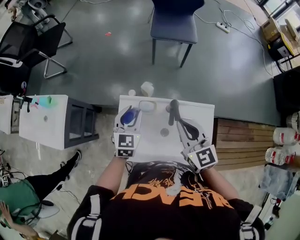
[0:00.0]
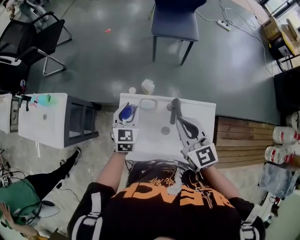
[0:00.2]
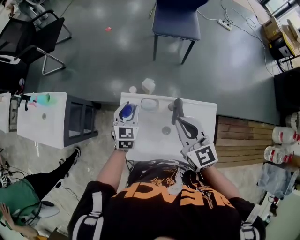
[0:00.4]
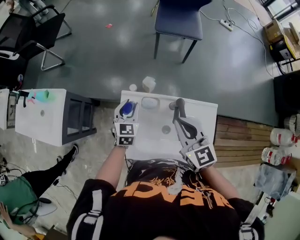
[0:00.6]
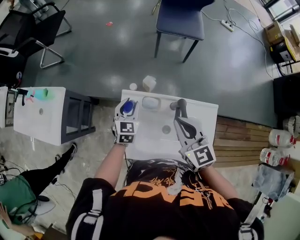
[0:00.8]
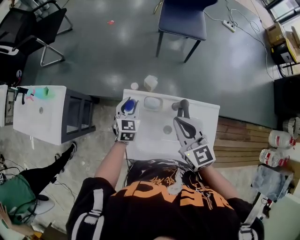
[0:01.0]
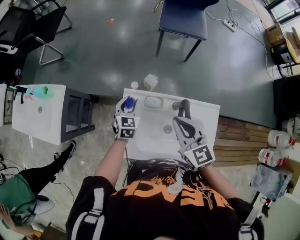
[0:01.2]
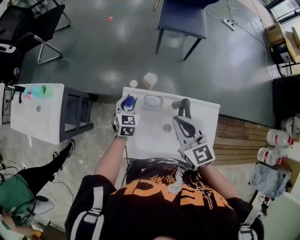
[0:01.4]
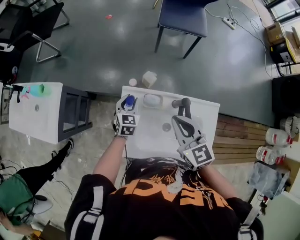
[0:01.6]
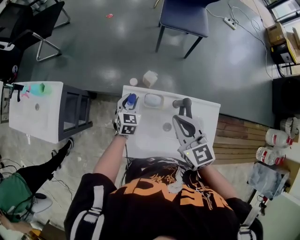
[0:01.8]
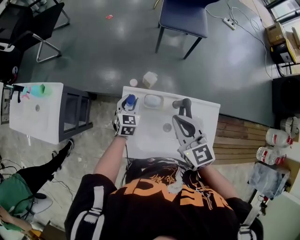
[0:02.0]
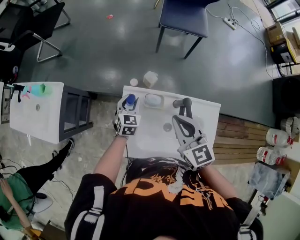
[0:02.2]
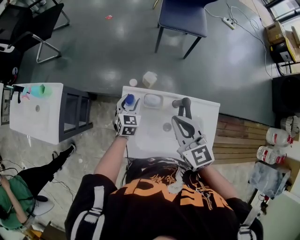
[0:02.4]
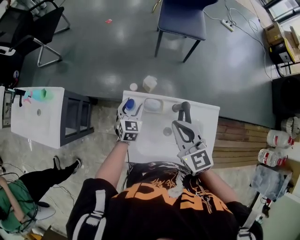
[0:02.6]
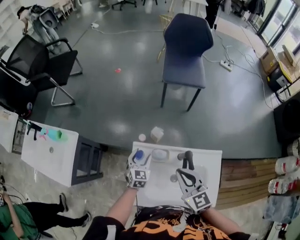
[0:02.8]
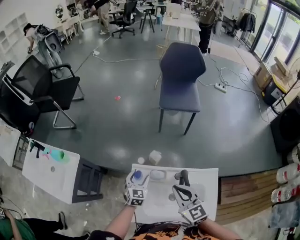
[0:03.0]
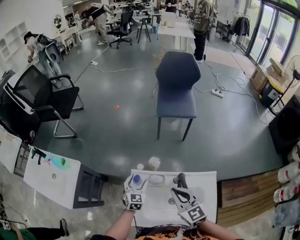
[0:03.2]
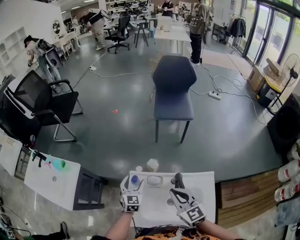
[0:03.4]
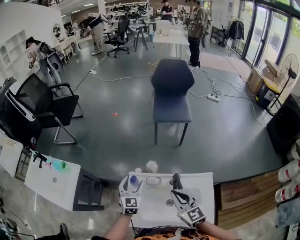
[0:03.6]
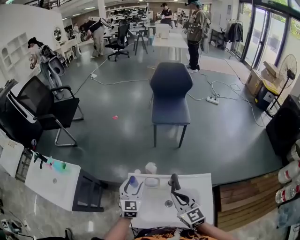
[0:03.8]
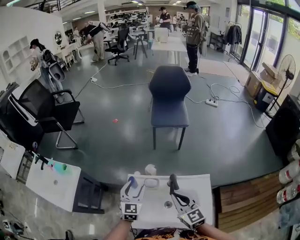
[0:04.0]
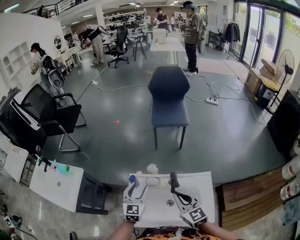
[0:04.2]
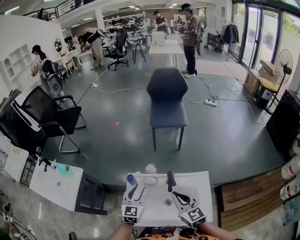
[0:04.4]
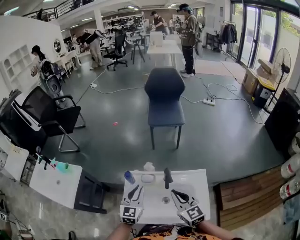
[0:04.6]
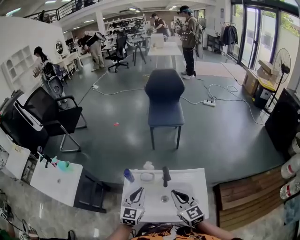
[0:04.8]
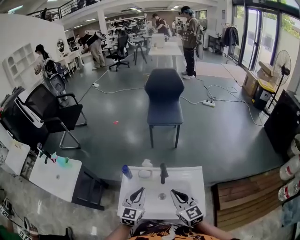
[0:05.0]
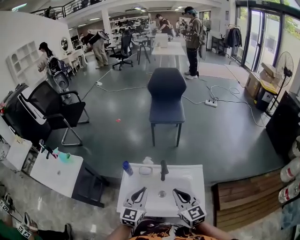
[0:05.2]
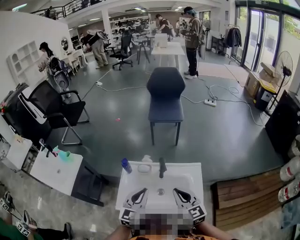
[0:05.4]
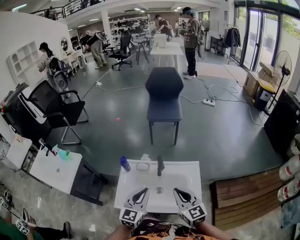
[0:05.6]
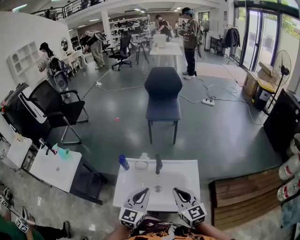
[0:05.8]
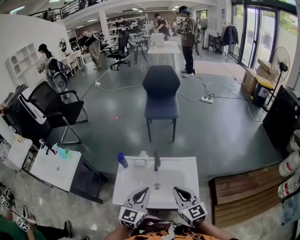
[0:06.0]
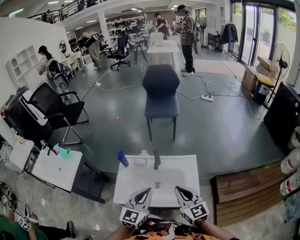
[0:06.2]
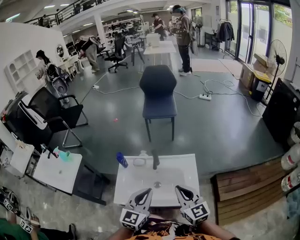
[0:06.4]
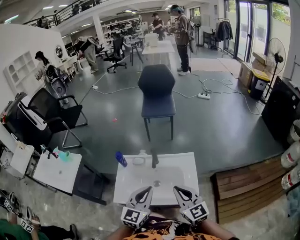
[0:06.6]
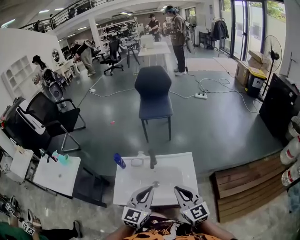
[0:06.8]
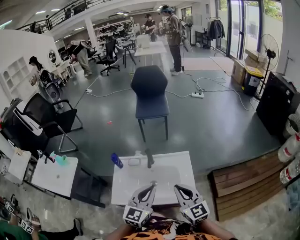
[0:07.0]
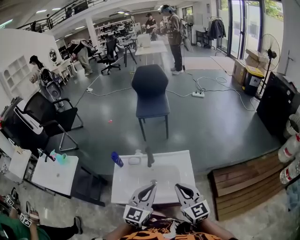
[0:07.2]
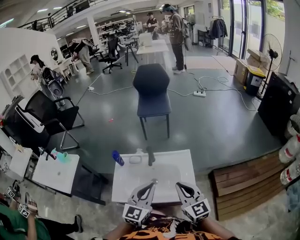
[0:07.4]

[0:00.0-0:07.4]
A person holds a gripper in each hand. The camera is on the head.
0:00.0 to 0:01.4: The left gripper goes approximately 15 cm downward and forward. Meanwhile the right gripper goes some 5 cm to the left.
0:01.4 to 0:03.0: The left gripper opens its fingers.
0:03.0 to 0:04.4: The right gripper heads backward and to the right, covering approximately 10 cm, while the left gripper heads upward and backward, covering roughly 20 cm, and closes.
0:04.4 to 0:06.0: The grippers both shift backward and to the right by roughly 20 cm. The left gripper closes.
0:06.0 to 0:07.4: The right gripper ends up about 5 cm from where it was; the left gripper travels to the right by roughly 5 cm.

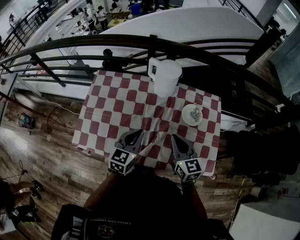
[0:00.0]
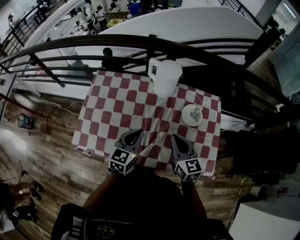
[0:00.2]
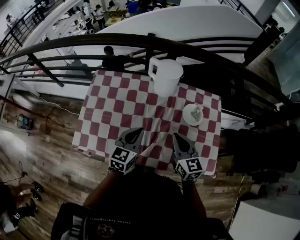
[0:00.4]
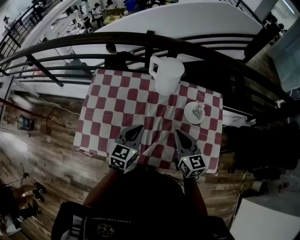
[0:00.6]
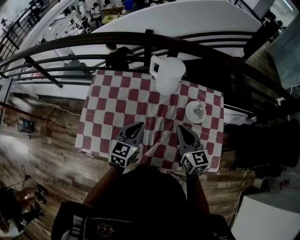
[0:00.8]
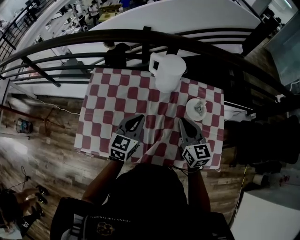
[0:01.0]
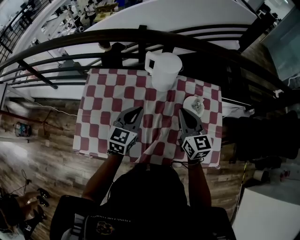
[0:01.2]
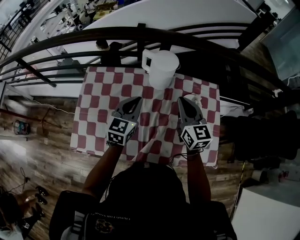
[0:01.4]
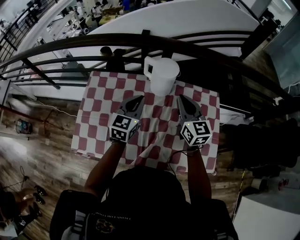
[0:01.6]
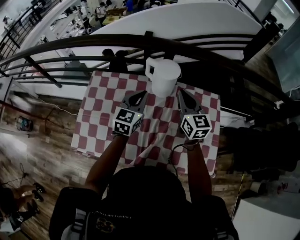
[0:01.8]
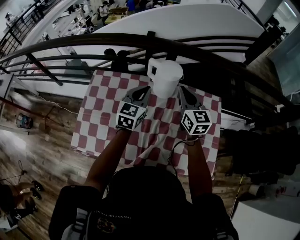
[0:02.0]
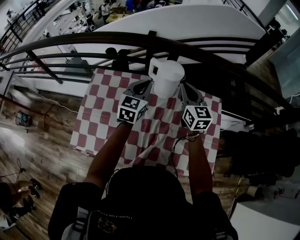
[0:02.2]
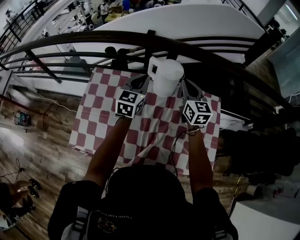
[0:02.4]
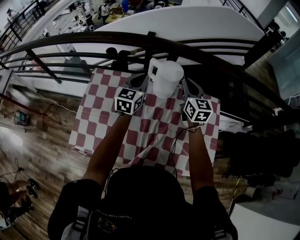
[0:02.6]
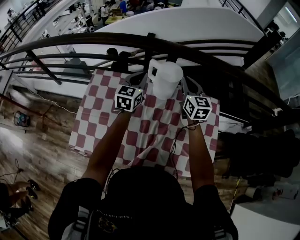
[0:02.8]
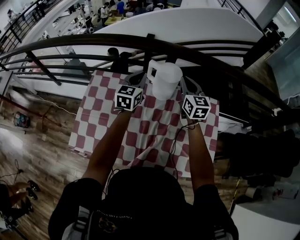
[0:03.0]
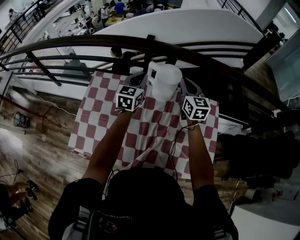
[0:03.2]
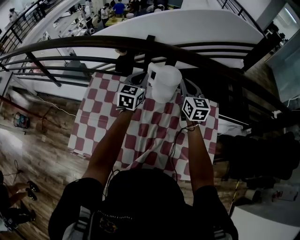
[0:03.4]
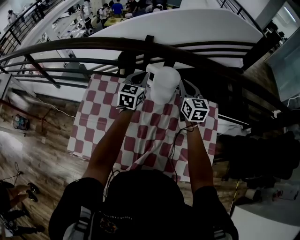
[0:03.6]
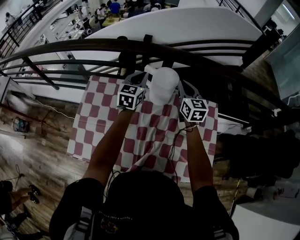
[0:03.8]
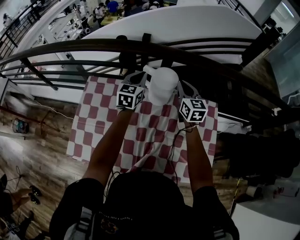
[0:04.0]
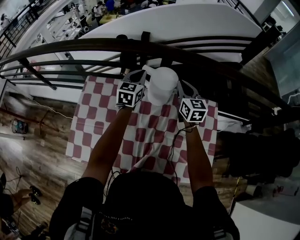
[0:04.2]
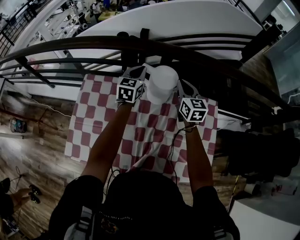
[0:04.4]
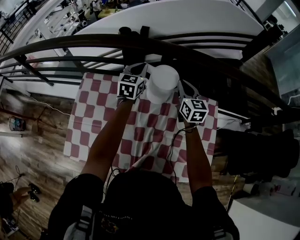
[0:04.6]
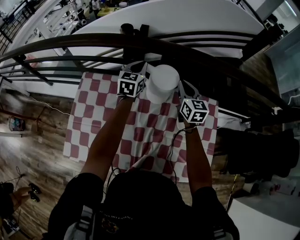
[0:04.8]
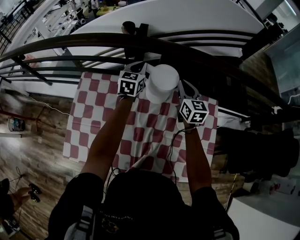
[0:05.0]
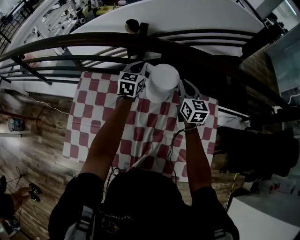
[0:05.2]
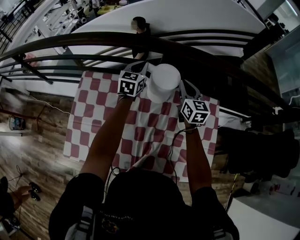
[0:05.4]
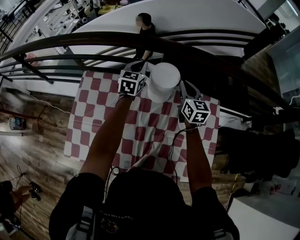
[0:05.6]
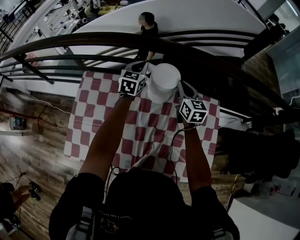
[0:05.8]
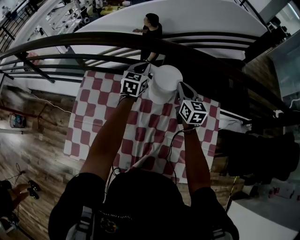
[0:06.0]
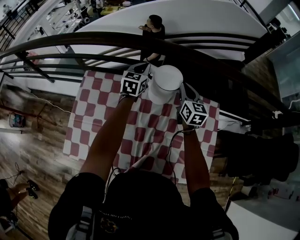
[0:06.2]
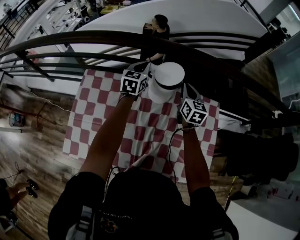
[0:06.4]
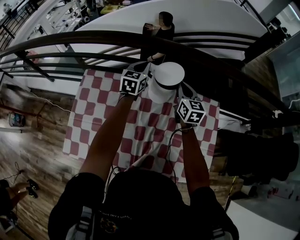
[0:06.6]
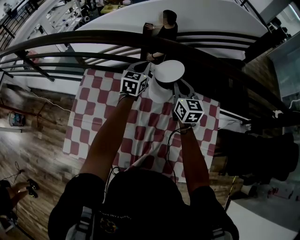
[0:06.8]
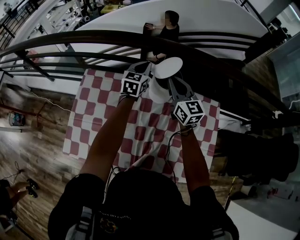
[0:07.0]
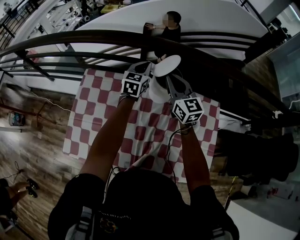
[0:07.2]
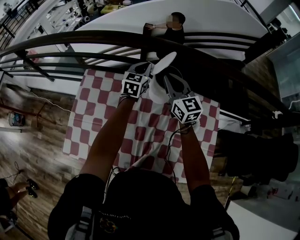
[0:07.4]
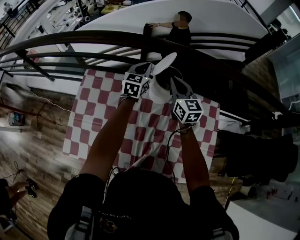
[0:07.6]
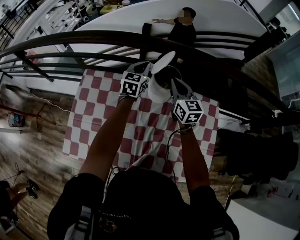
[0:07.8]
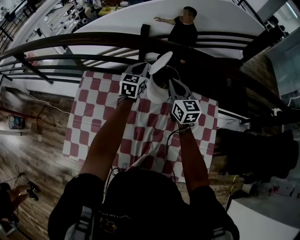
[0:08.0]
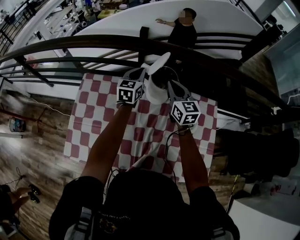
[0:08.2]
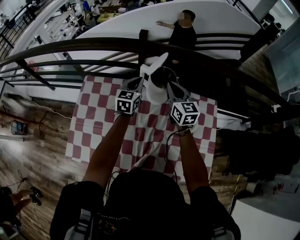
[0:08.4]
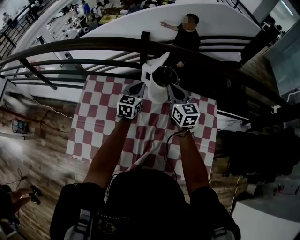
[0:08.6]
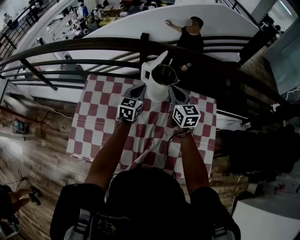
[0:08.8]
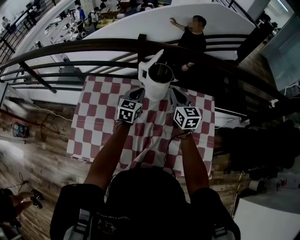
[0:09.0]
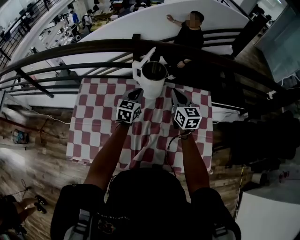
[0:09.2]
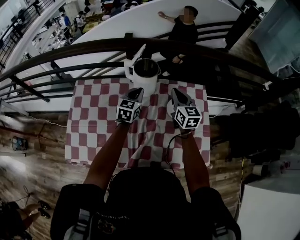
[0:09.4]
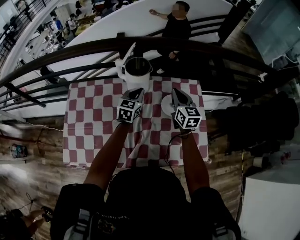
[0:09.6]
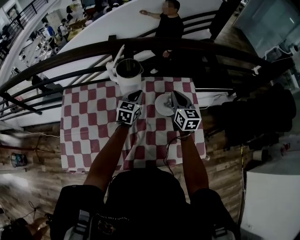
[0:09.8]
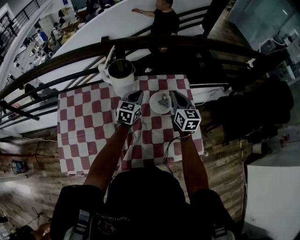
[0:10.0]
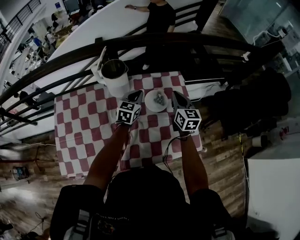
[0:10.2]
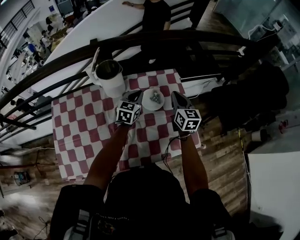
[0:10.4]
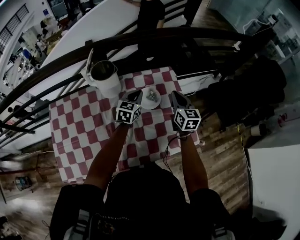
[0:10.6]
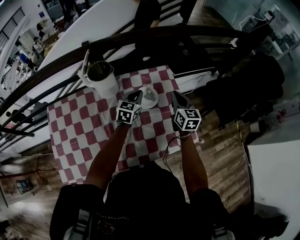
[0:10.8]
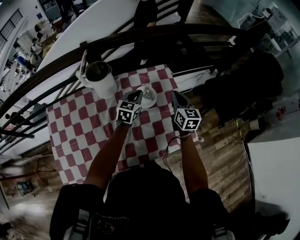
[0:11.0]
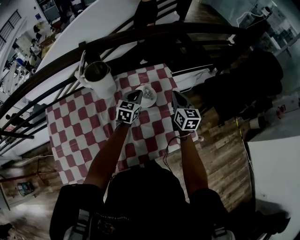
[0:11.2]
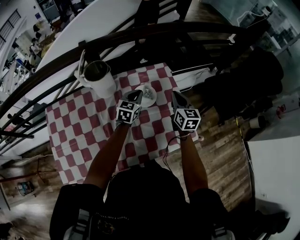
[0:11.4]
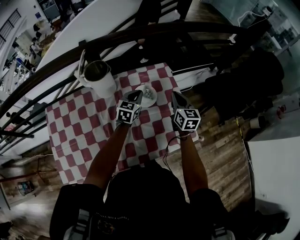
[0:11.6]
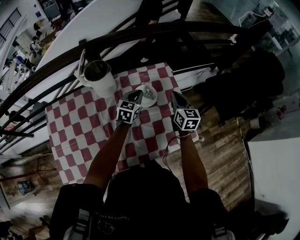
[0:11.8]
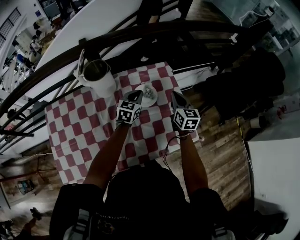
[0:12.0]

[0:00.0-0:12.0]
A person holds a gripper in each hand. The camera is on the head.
0:00.0 to 0:01.6: The right gripper shifts roughly 20 cm forward and upward; the left gripper goes some 15 cm forward.
0:01.6 to 0:03.0: The two grippers go some 10 cm forward.
0:03.0 to 0:04.4: The left gripper heads forward, covering about 10 cm. Meanwhile the right gripper moves roughly 5 cm.
0:04.4 to 0:06.0: The grippers stay close to where they were, moving slightly.
0:06.0 to 0:07.6: The right gripper travels to the left by some 5 cm.
0:07.6 to 0:09.0: The right gripper is displaced backward and to the right by approximately 10 cm. The left gripper is displaced backward by some 15 cm.
0:09.0 to 0:10.4: Both grippers move to the right, some 25 cm. The right gripper rotates some 30 degrees. The left gripper swivels about 20 degrees.
0:10.4 to 0:12.0: The right gripper ends up roughly 5 cm from where it was, while the left gripper ends up roughly 5 cm from where it was.

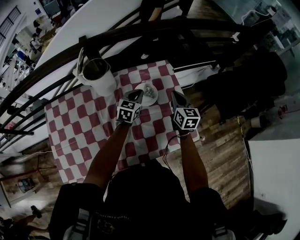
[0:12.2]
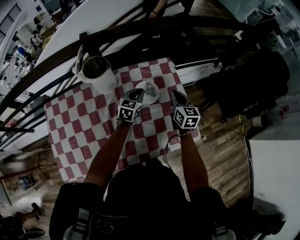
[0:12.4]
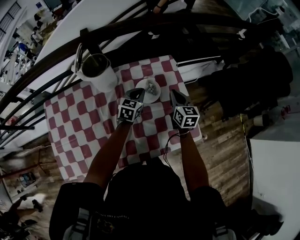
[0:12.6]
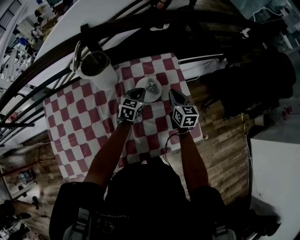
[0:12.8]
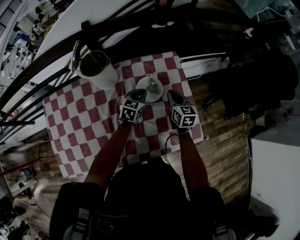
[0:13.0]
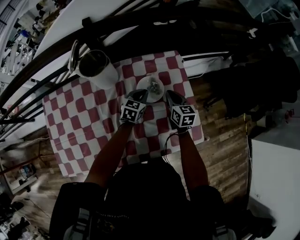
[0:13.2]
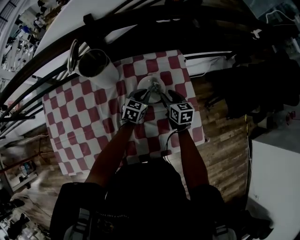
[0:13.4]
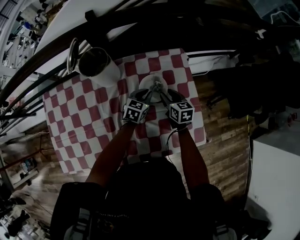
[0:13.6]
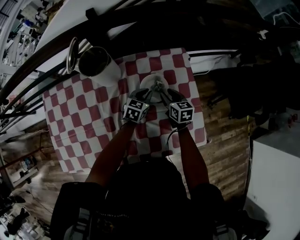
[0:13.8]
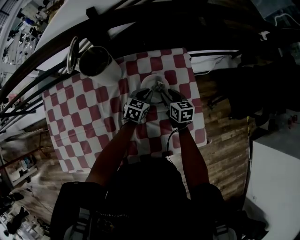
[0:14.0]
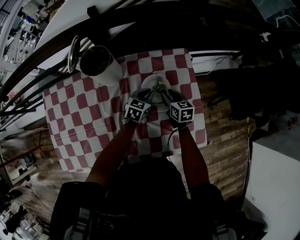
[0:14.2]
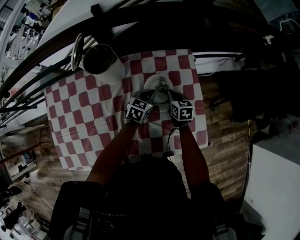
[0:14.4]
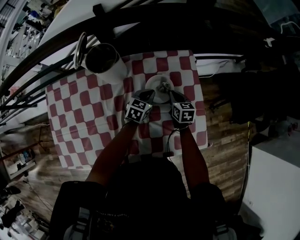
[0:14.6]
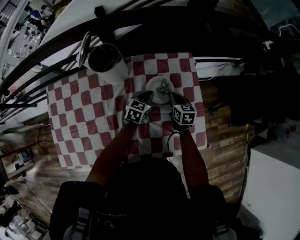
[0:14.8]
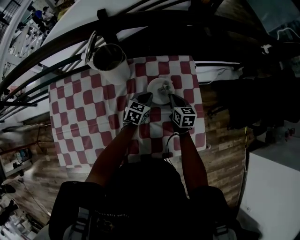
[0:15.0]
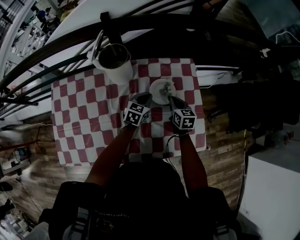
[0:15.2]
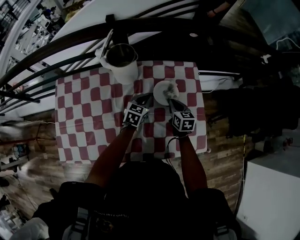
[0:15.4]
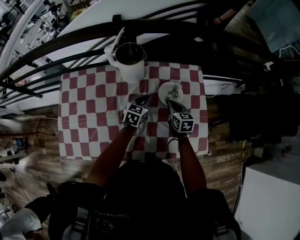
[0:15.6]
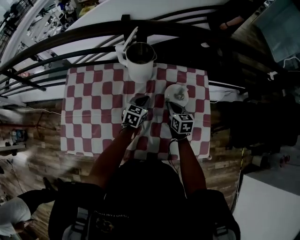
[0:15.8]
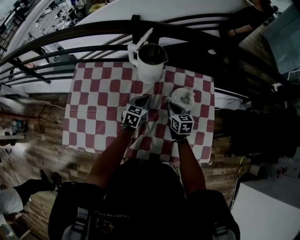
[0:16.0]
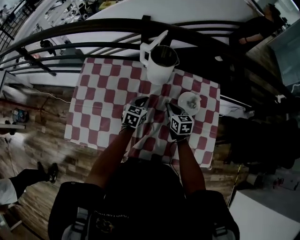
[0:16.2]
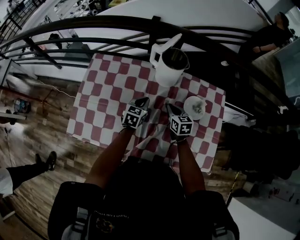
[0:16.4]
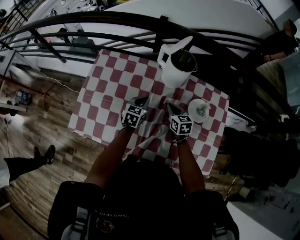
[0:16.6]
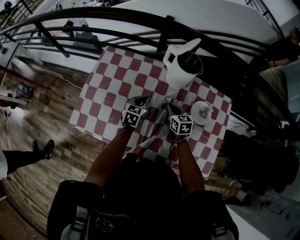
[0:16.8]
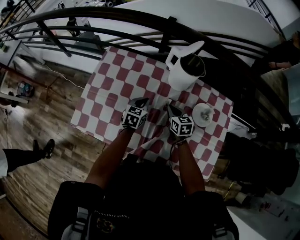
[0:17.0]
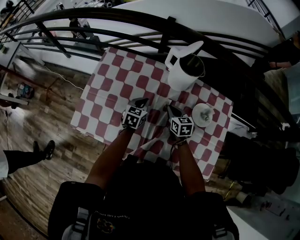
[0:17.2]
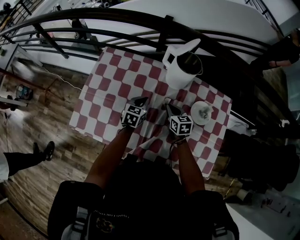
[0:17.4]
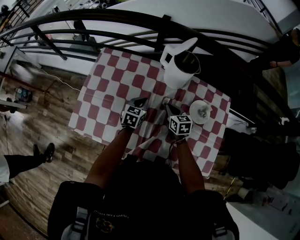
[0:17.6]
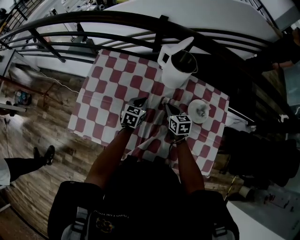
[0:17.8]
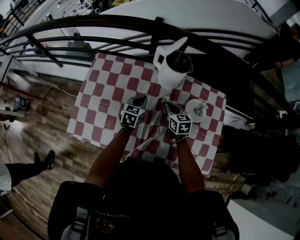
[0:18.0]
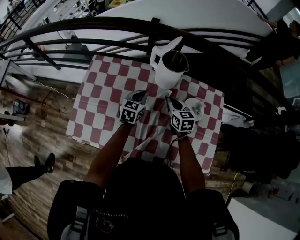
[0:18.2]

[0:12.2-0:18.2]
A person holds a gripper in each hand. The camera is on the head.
0:12.2 to 0:13.8: The left gripper heads downward, covering roughly 10 cm; the right gripper shifts some 15 cm downward and to the left, turns by roughly 30 degrees, and opens.
0:13.8 to 0:15.2: The right gripper closes its fingers. The left gripper changes place by about 5 cm.
0:15.2 to 0:16.6: The left gripper moves roughly 25 cm, and turns by approximately 30 degrees. Meanwhile the right gripper moves about 25 cm, and changes its angle by roughly 30 degrees.
0:16.6 to 0:18.2: The grippers both shift upward by roughly 5 cm.
